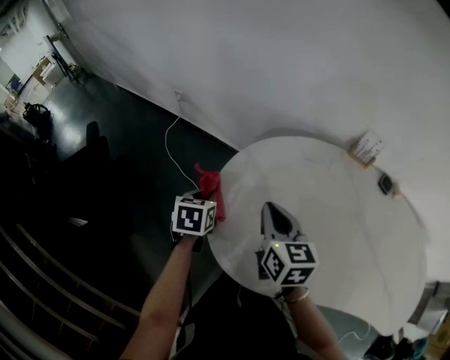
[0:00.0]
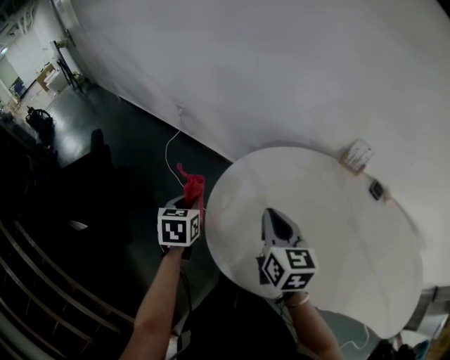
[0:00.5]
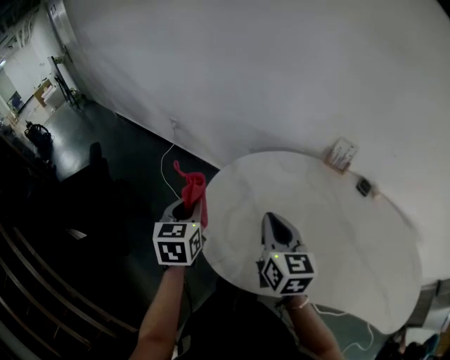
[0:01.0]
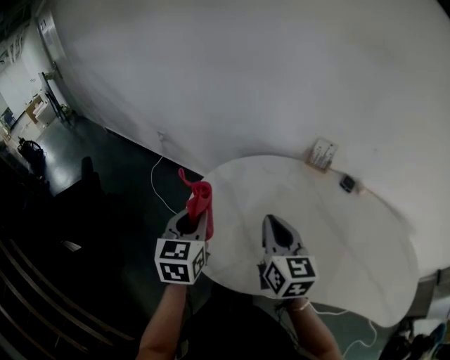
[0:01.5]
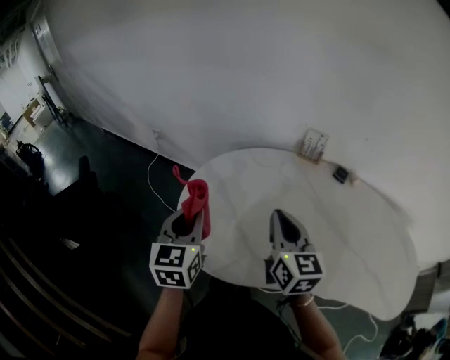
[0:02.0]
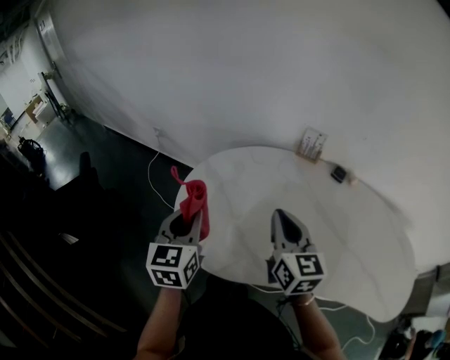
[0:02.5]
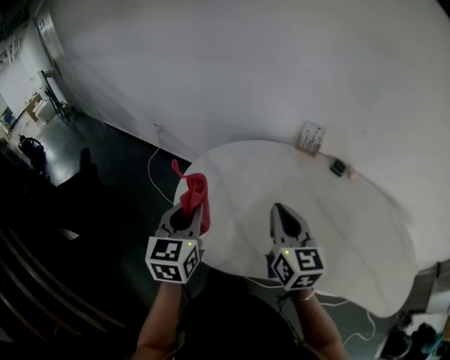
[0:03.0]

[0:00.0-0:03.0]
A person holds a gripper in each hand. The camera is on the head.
0:00.0 to 0:01.5: The left gripper heads upward, backward and to the right, covering roughly 20 cm, and swivels about 30 degrees. Meanwhile the right gripper is displaced to the right, upward and backward by approximately 15 cm.
0:01.5 to 0:03.0: The left gripper changes place by some 5 cm; the right gripper heads to the right, covering some 5 cm.

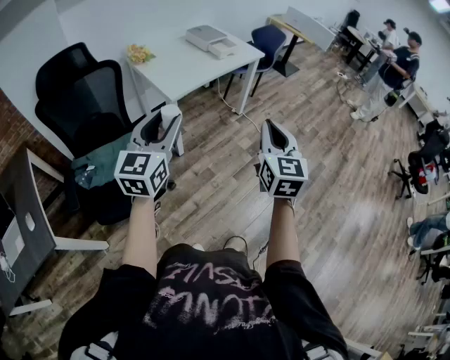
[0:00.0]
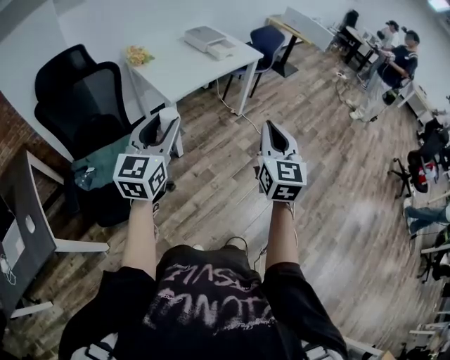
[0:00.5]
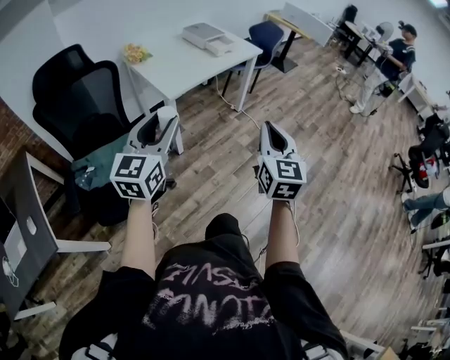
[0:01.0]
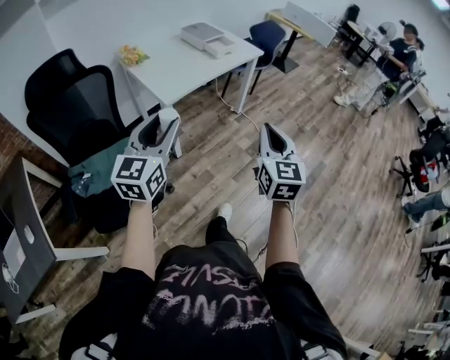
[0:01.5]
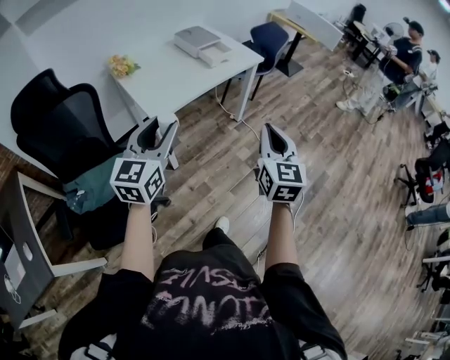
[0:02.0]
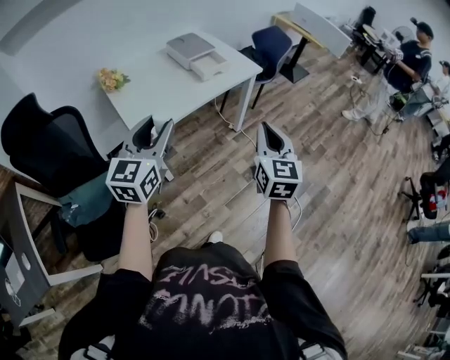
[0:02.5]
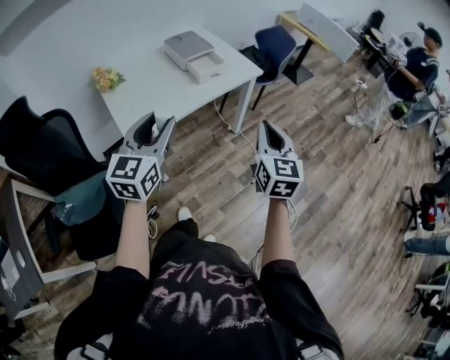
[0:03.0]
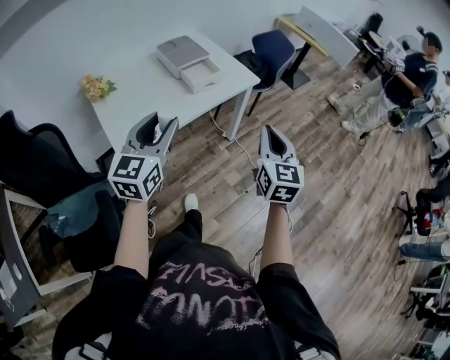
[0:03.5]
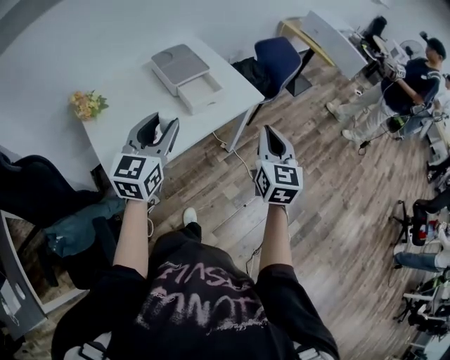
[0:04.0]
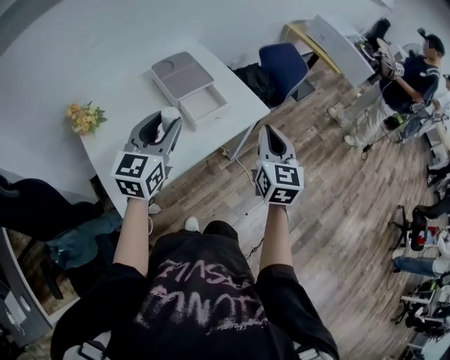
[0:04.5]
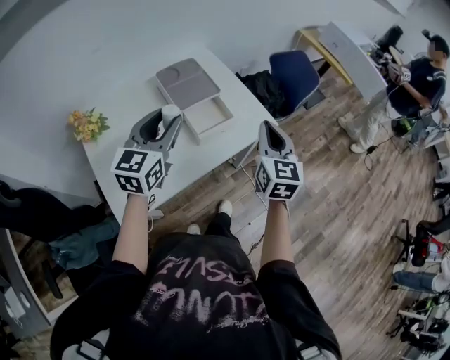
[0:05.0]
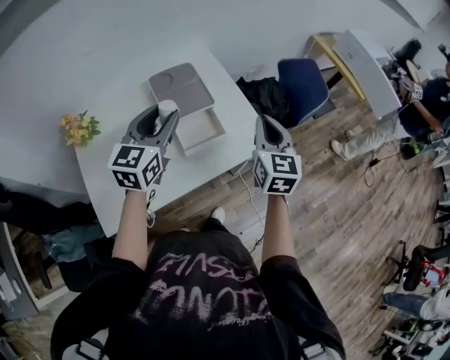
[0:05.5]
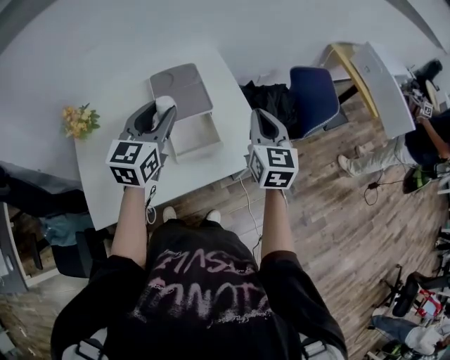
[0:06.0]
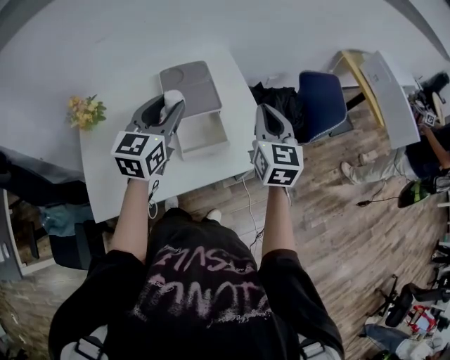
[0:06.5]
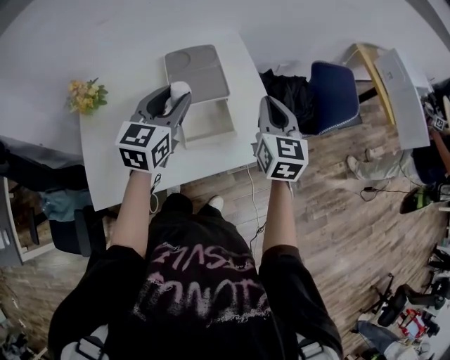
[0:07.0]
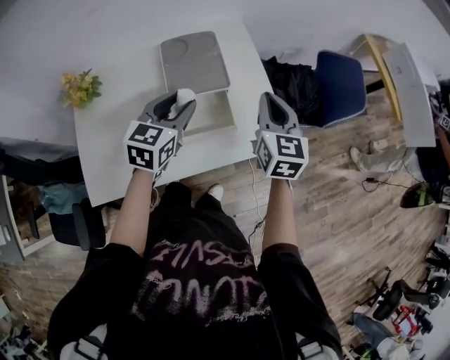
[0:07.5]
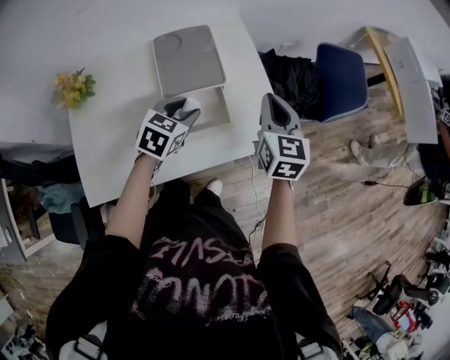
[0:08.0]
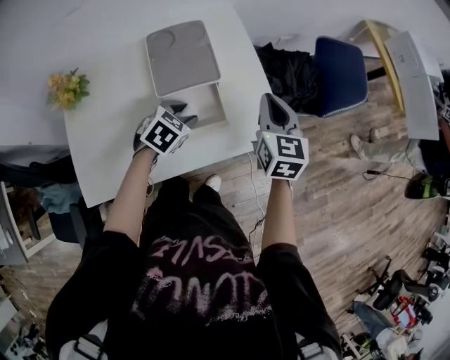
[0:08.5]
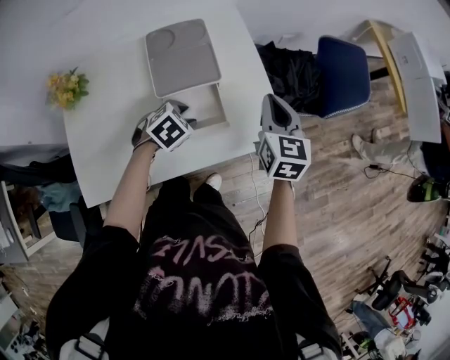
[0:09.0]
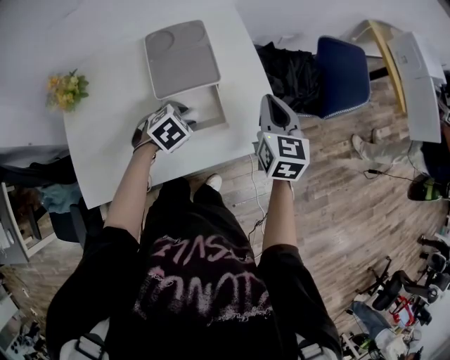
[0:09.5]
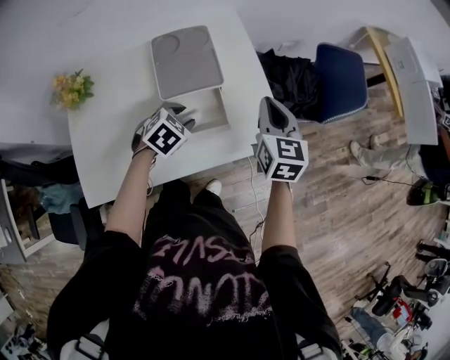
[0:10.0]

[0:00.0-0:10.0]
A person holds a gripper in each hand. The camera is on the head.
0:00.0 to 0:02.0: The two grippers go roughly 20 cm forward.
0:02.0 to 0:04.0: The grippers both shift forward by approximately 40 cm.
0:04.0 to 0:06.0: The two grippers go some 30 cm forward. The right gripper changes its angle by roughly 20 degrees.
0:06.0 to 0:08.0: The right gripper shifts approximately 5 cm downward; the left gripper goes some 20 cm downward, and points its fingers approximately 30 degrees further downward.
0:08.0 to 0:10.0: The left gripper moves downward, approximately 5 cm, and changes its angle by approximately 20 degrees.

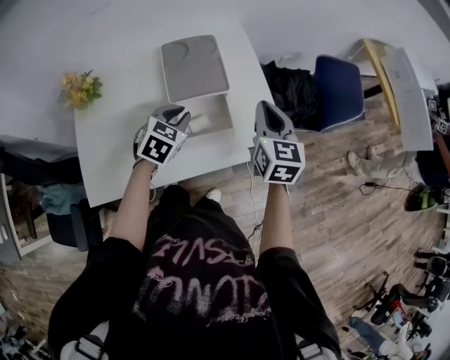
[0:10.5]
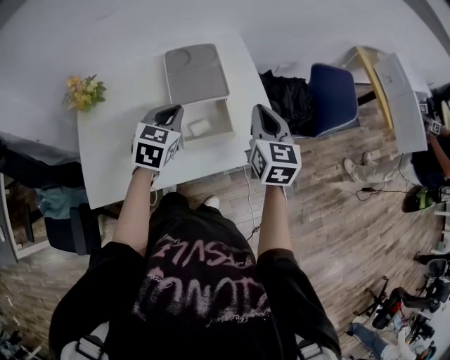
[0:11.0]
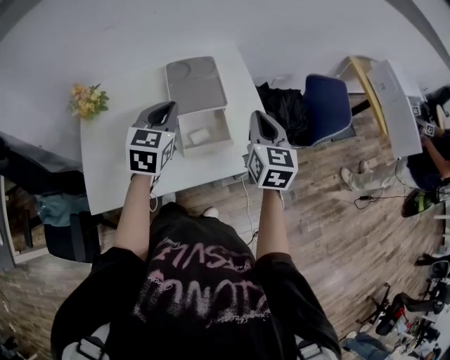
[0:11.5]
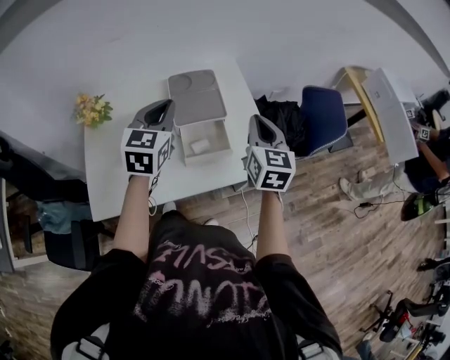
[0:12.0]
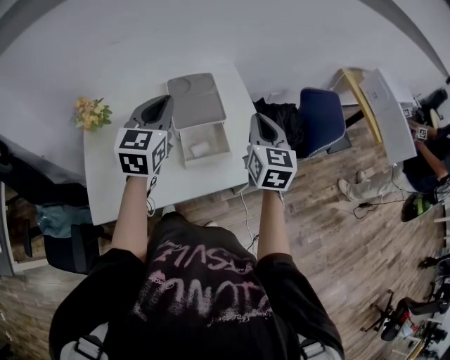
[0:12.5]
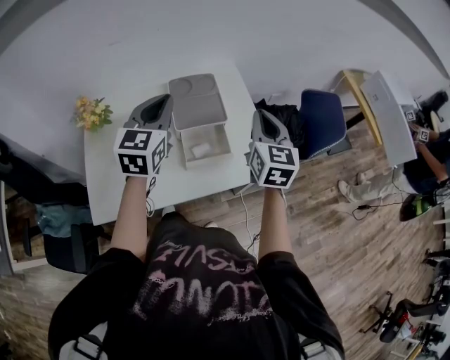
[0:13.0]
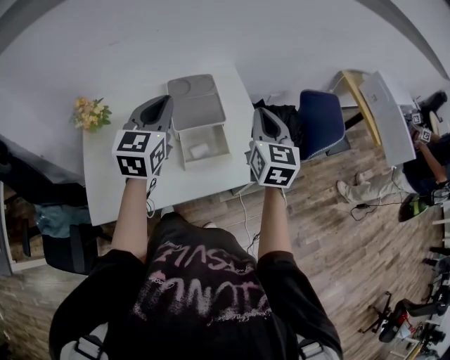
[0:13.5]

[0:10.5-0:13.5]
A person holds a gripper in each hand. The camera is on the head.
0:10.5 to 0:12.0: The left gripper goes some 20 cm upward, and changes its angle by about 30 degrees, while the right gripper goes about 5 cm upward.
0:12.0 to 0:13.5: The grippers stay close to where they were, moving slightly.

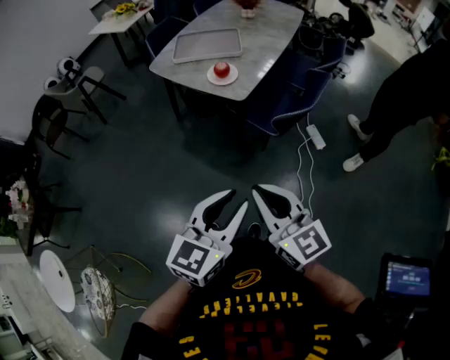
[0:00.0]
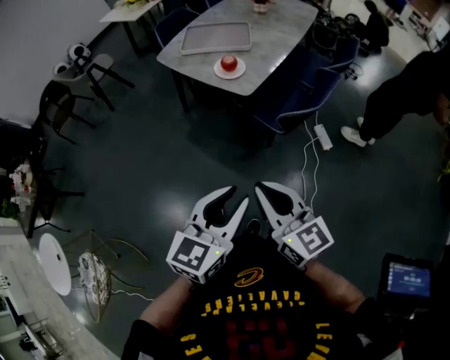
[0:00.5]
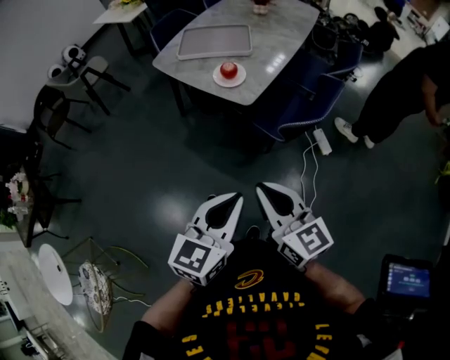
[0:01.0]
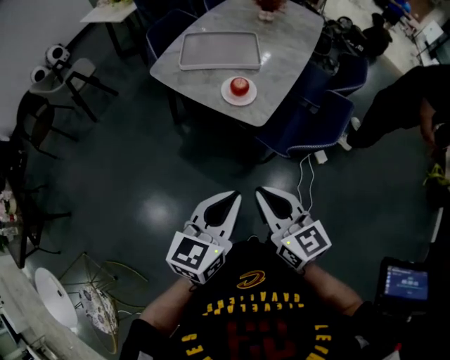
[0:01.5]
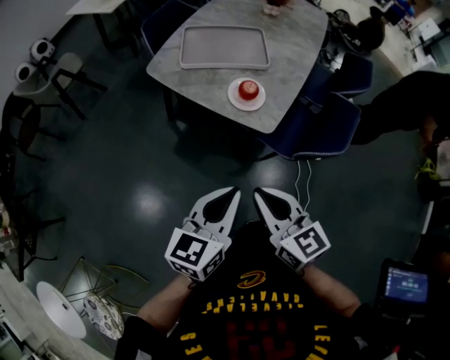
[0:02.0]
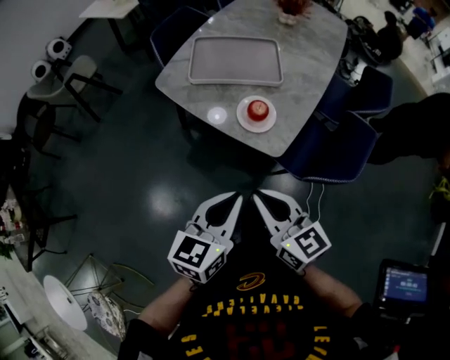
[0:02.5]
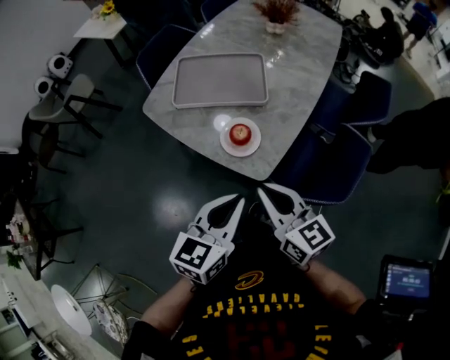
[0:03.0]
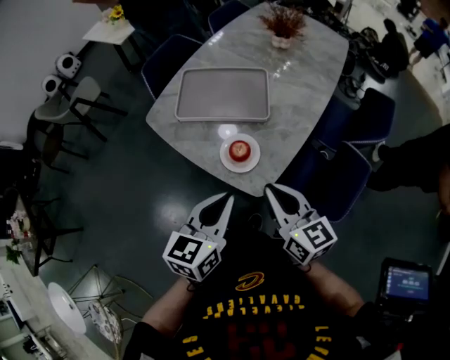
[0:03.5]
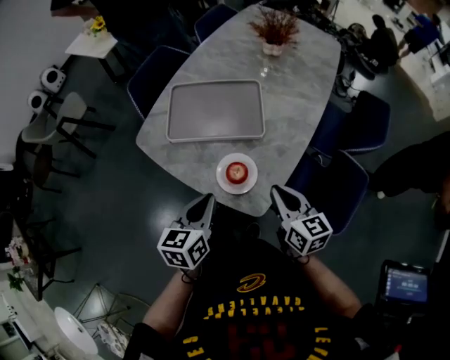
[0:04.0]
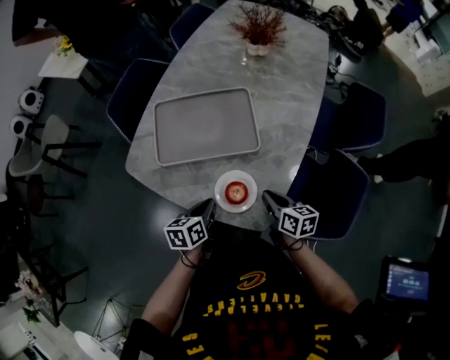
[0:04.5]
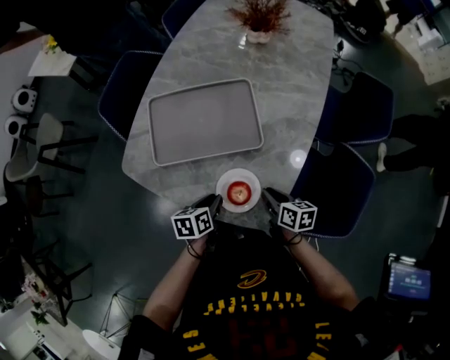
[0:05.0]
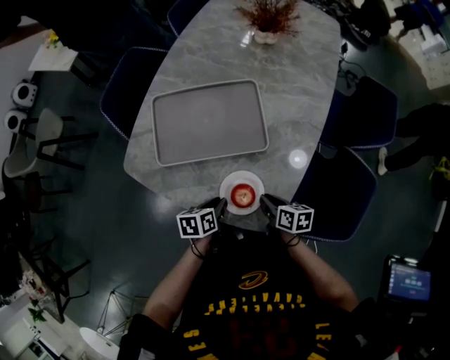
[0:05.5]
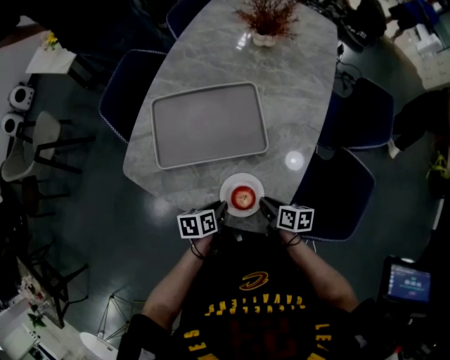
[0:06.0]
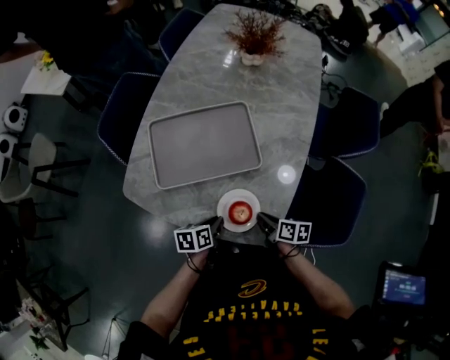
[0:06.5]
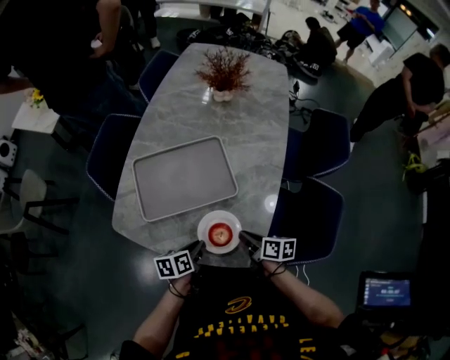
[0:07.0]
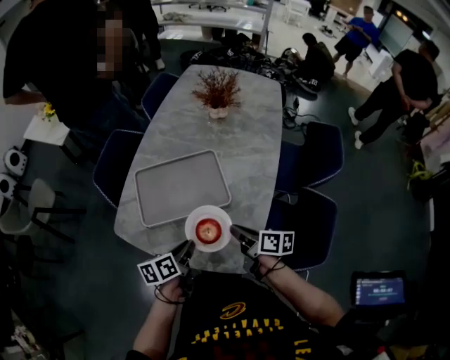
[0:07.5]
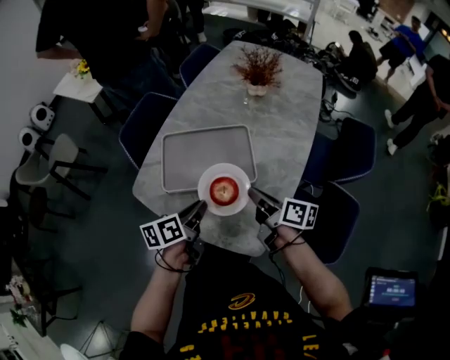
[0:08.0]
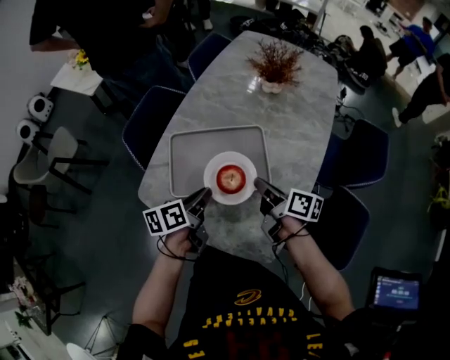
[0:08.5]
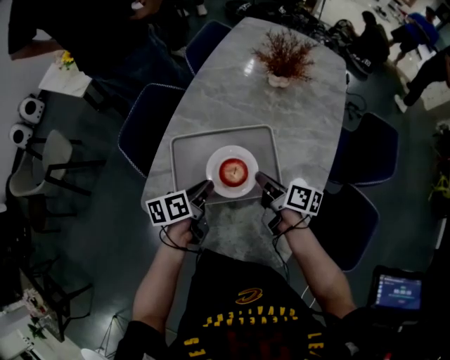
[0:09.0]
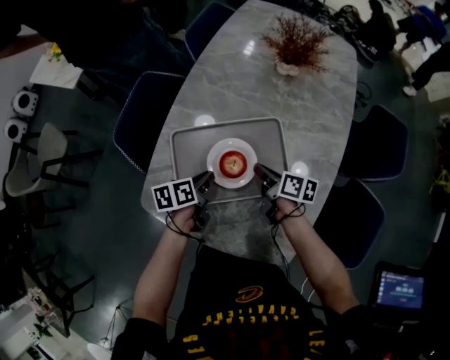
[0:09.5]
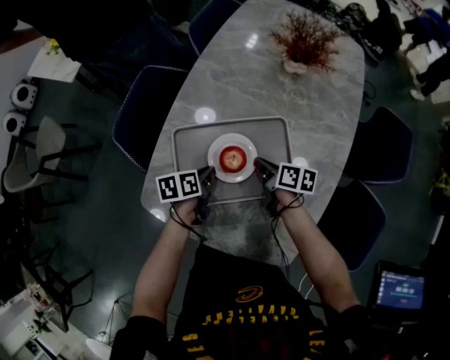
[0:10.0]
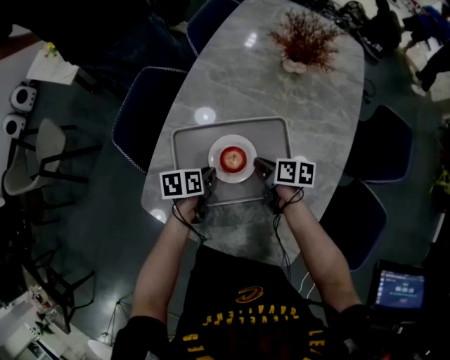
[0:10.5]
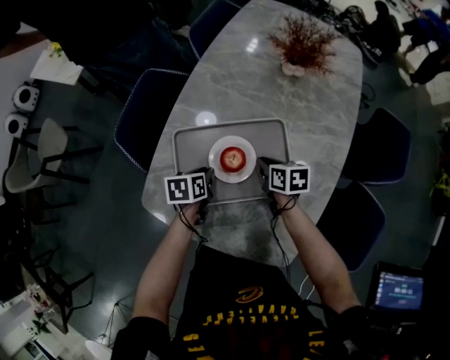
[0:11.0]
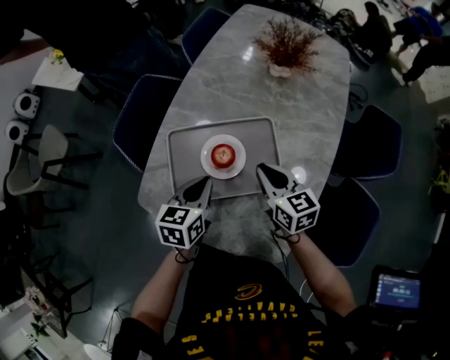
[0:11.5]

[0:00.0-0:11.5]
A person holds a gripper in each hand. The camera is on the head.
0:00.0 to 0:02.0: Both grippers travel together forward and to the left, some 30 cm. The left gripper closes its fingers.
0:02.0 to 0:04.0: The right gripper travels forward and to the right by approximately 35 cm. Meanwhile the left gripper moves forward, some 30 cm.
0:04.0 to 0:06.0: The grippers both shift downward by approximately 20 cm. The right gripper rotates roughly 40 degrees, while the left gripper swivels approximately 40 degrees.
0:06.0 to 0:07.5: The right gripper shifts some 15 cm upward and forward, and swivels about 20 degrees; the left gripper shifts some 15 cm upward.
0:07.5 to 0:09.5: The grippers both shift forward, to the left and downward by approximately 20 cm.
0:09.5 to 0:11.5: The grippers both shift upward by approximately 10 cm. The right gripper twists about 50 degrees counterclockwise, seen from behind; the left gripper swivels approximately 30 degrees.
